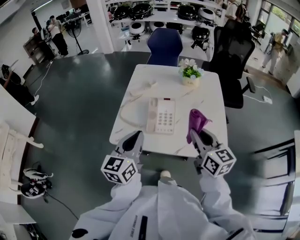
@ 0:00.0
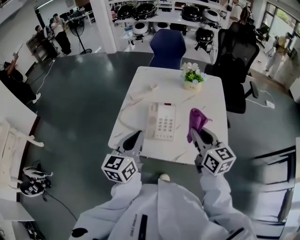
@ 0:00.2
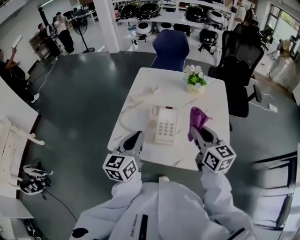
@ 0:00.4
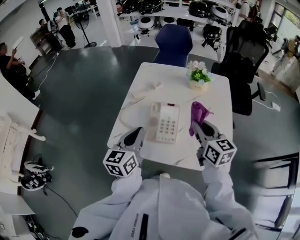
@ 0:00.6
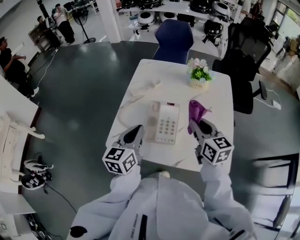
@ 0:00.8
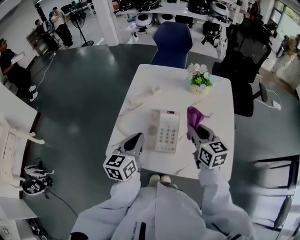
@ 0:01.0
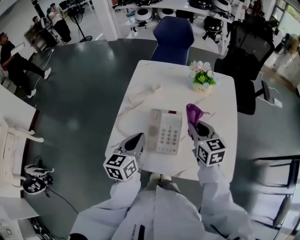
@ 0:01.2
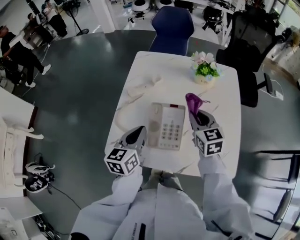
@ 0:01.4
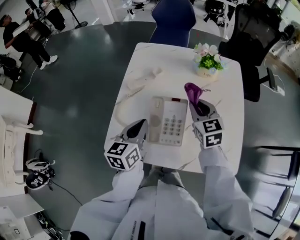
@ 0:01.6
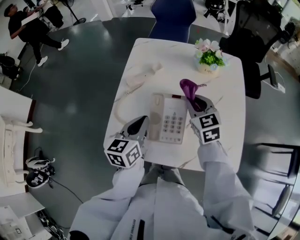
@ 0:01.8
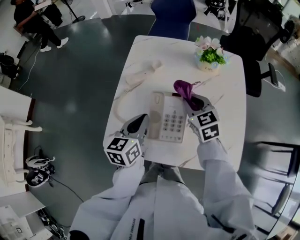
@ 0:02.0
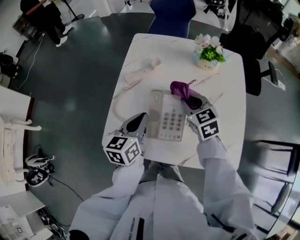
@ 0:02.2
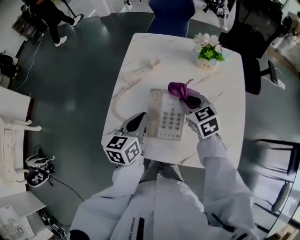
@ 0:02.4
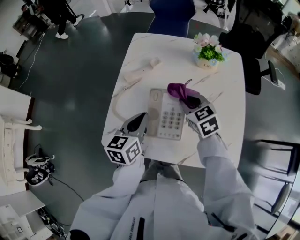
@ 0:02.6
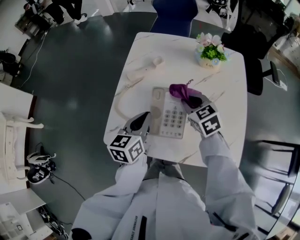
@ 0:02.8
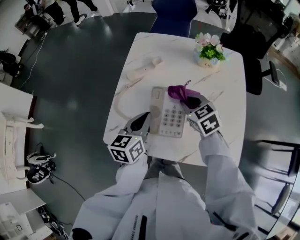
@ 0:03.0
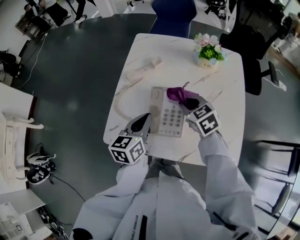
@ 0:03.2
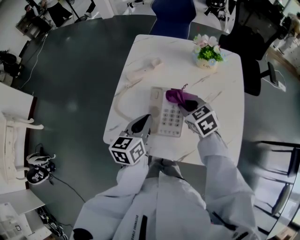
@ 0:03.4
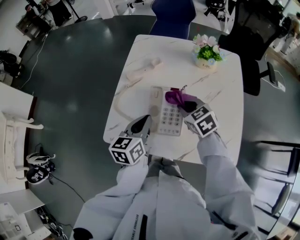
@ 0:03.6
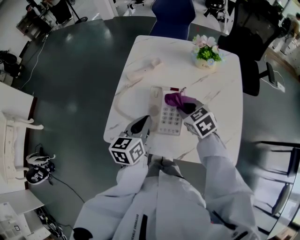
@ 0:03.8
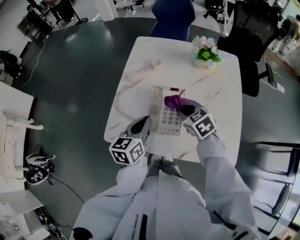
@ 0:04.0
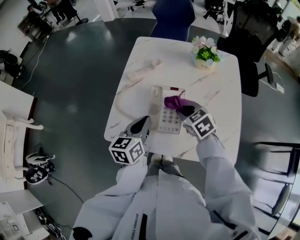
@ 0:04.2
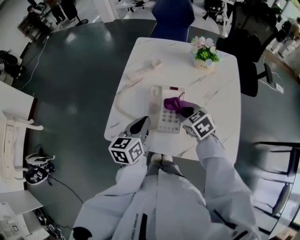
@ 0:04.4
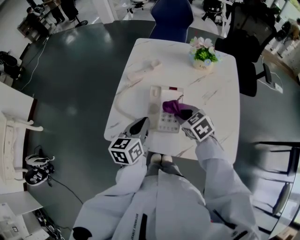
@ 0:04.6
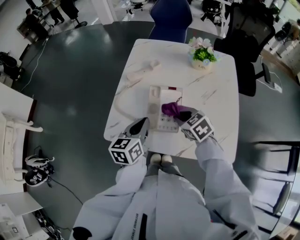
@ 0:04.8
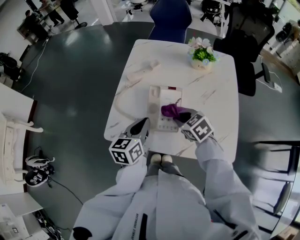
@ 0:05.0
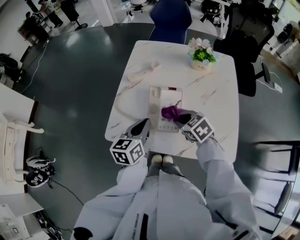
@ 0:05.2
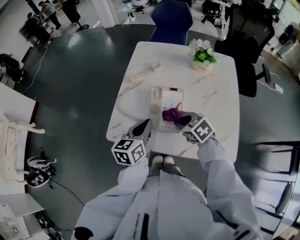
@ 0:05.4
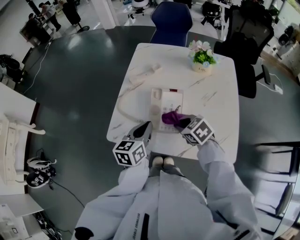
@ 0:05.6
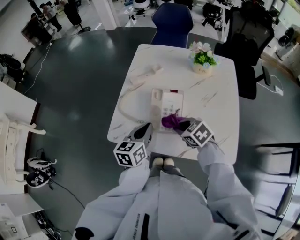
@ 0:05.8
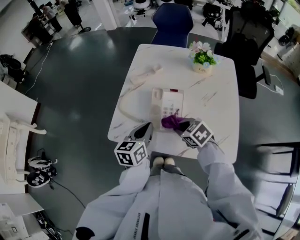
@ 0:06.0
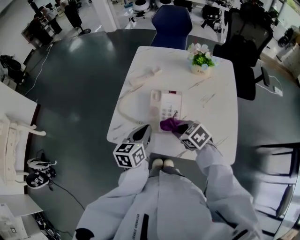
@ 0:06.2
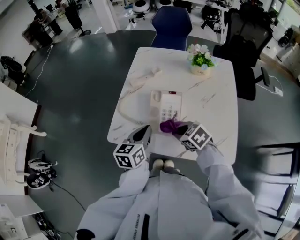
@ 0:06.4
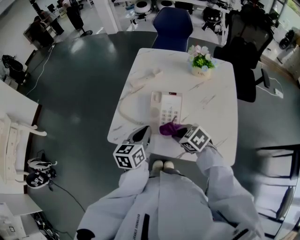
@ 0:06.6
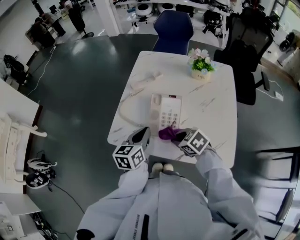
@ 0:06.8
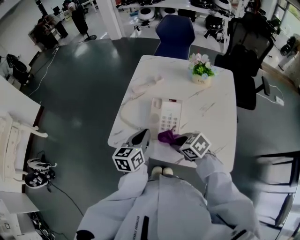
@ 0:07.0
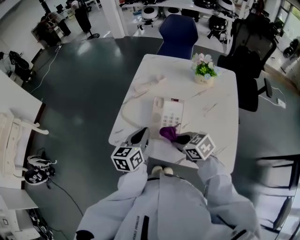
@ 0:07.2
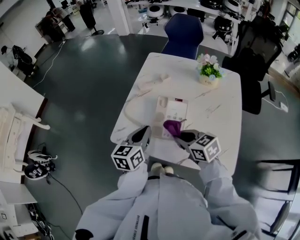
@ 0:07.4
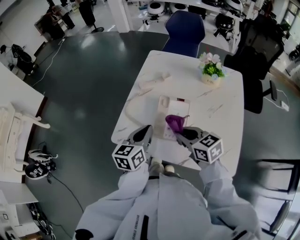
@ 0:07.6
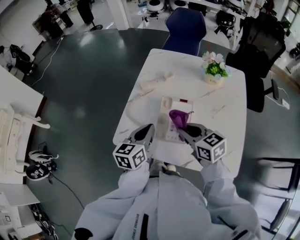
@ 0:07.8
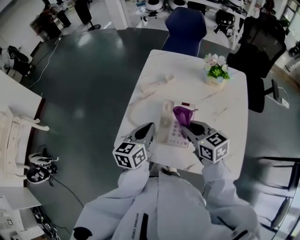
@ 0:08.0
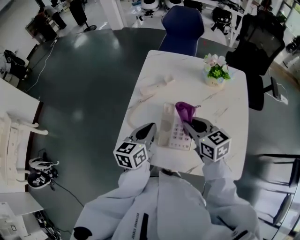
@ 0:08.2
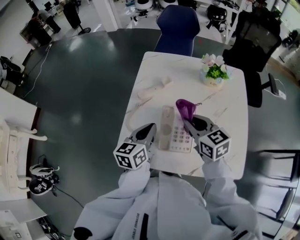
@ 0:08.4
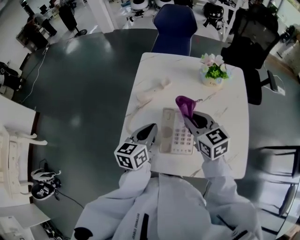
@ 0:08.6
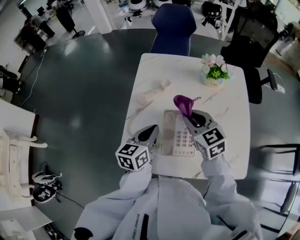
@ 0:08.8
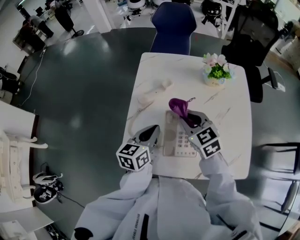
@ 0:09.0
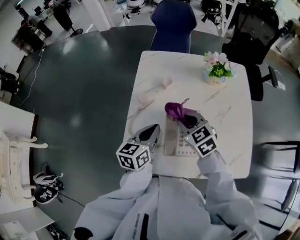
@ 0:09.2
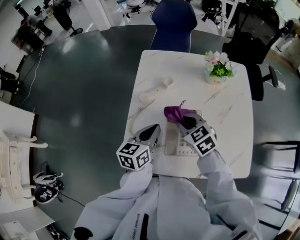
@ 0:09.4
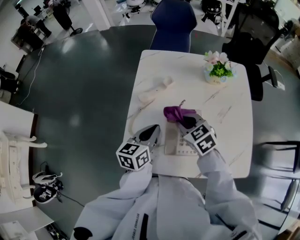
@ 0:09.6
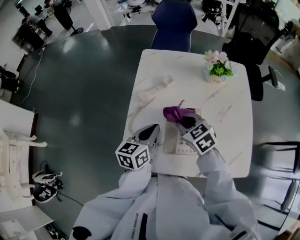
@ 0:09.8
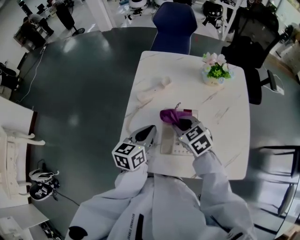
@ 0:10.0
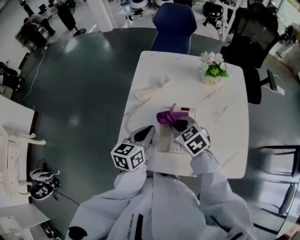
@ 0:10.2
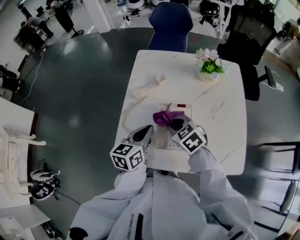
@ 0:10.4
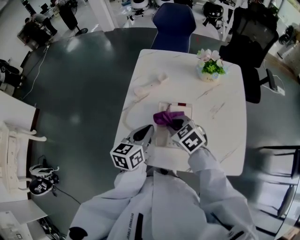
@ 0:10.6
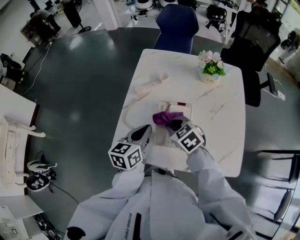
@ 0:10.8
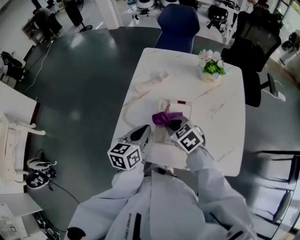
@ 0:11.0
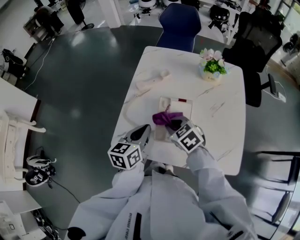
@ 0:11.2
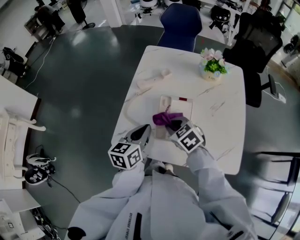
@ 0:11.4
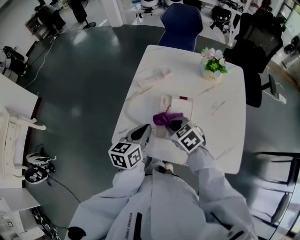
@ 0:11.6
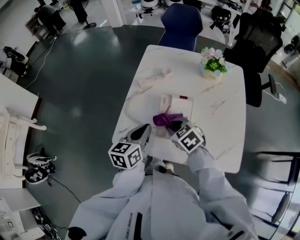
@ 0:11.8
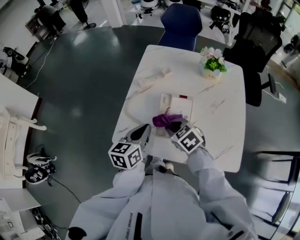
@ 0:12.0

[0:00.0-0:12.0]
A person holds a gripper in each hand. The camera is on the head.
0:00.0 to 0:01.6: The two grippers go about 25 cm forward and downward. The right gripper rotates approximately 30 degrees.
0:01.6 to 0:03.0: The right gripper changes place by approximately 5 cm, and swivels about 20 degrees.
0:03.0 to 0:04.4: The right gripper moves backward, some 5 cm.
0:04.4 to 0:06.0: The right gripper moves backward, approximately 5 cm.
0:06.0 to 0:07.6: The right gripper moves upward, approximately 5 cm, and swivels about 30 degrees.
0:07.6 to 0:09.0: Both grippers move forward, roughly 15 cm. The right gripper changes its angle by approximately 30 degrees.
0:09.0 to 0:10.4: The right gripper is displaced downward and backward by about 10 cm.
0:10.4 to 0:12.0: Both grippers travel together backward, roughly 5 cm.

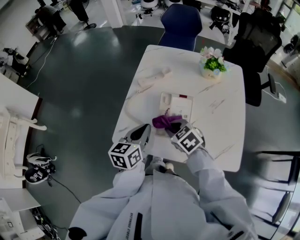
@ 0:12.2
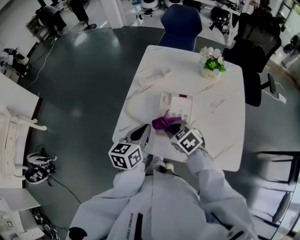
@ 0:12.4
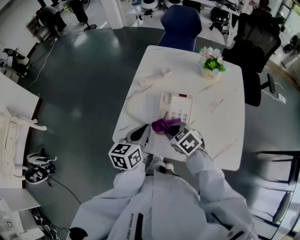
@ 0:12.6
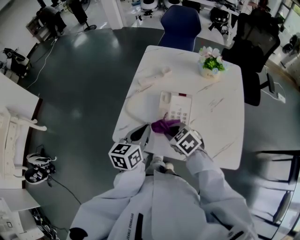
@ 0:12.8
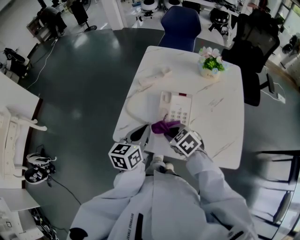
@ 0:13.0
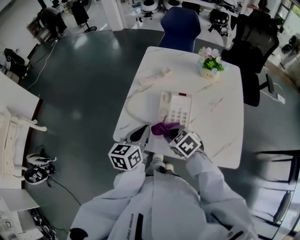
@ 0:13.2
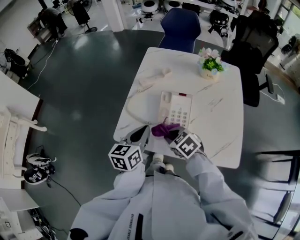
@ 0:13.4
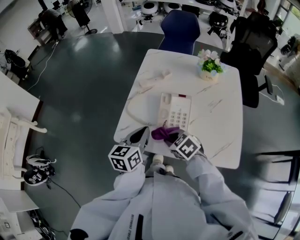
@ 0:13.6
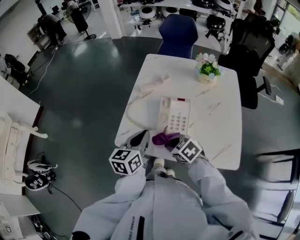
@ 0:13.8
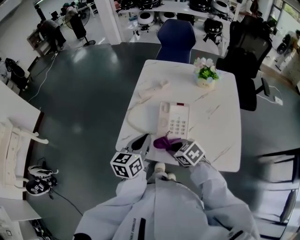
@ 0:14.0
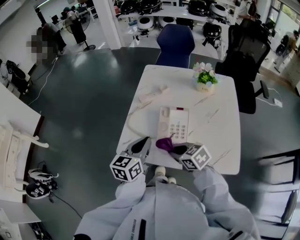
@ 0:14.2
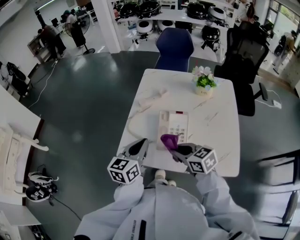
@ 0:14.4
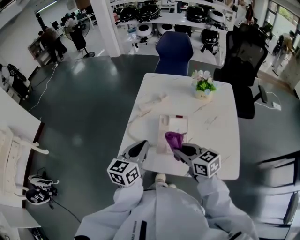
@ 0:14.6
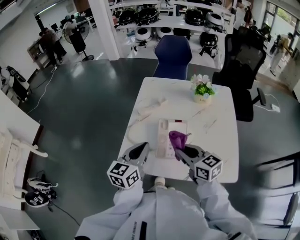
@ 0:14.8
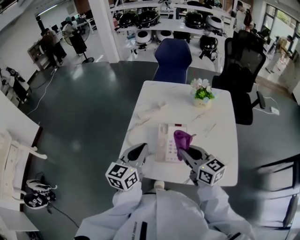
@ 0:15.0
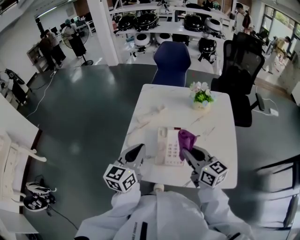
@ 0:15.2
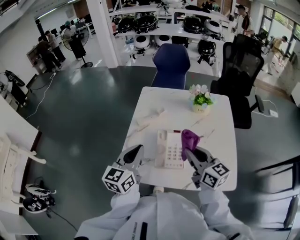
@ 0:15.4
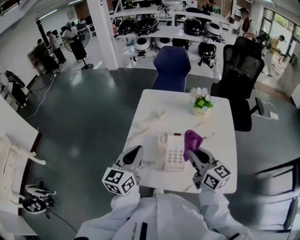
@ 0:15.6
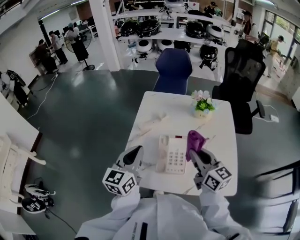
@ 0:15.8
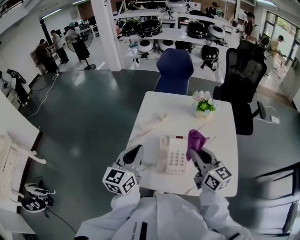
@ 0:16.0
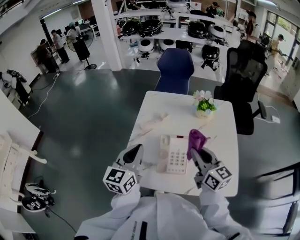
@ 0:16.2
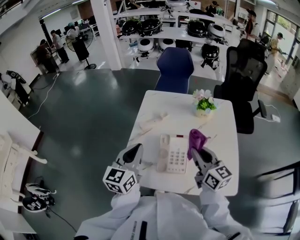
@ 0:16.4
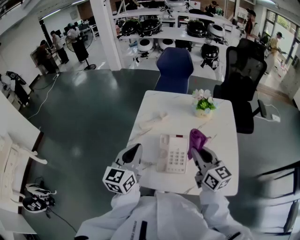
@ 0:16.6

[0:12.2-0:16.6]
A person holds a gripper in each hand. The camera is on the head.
0:12.2 to 0:13.6: The right gripper is displaced backward by roughly 5 cm.
0:13.6 to 0:15.2: The left gripper goes about 10 cm upward, while the right gripper goes about 20 cm upward and to the right, and tilts its fingers approximately 40 degrees upward.
0:15.2 to 0:16.6: The grippers move only a little.

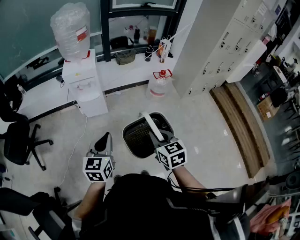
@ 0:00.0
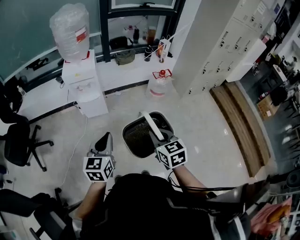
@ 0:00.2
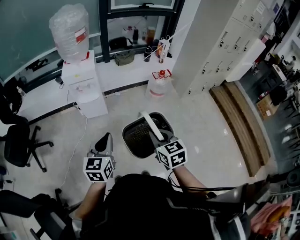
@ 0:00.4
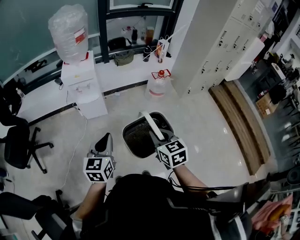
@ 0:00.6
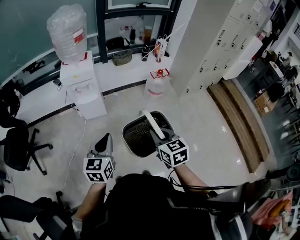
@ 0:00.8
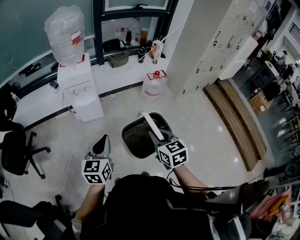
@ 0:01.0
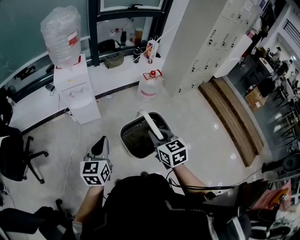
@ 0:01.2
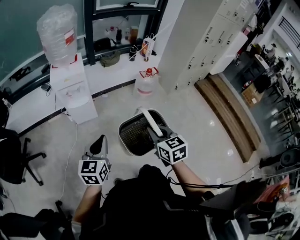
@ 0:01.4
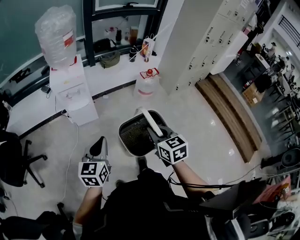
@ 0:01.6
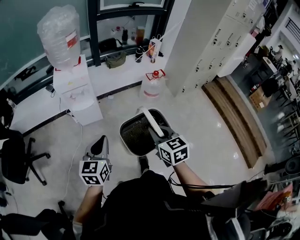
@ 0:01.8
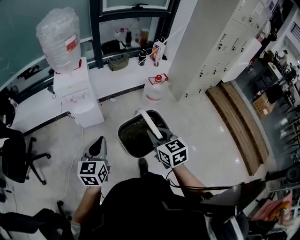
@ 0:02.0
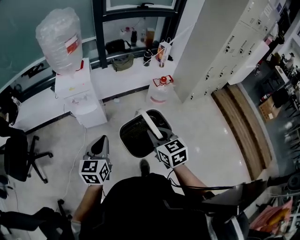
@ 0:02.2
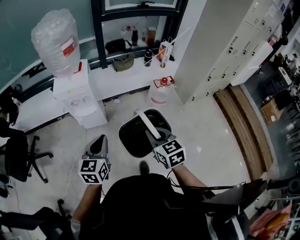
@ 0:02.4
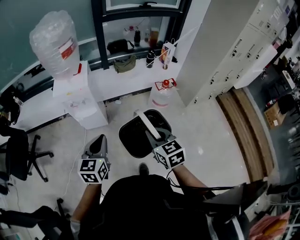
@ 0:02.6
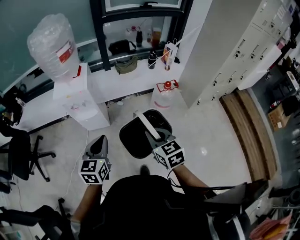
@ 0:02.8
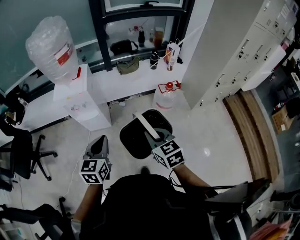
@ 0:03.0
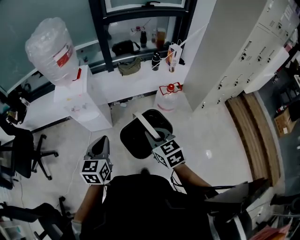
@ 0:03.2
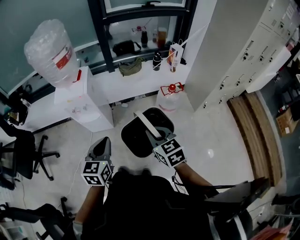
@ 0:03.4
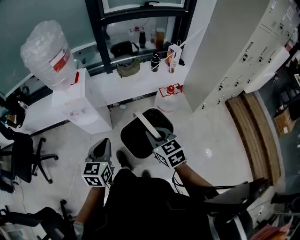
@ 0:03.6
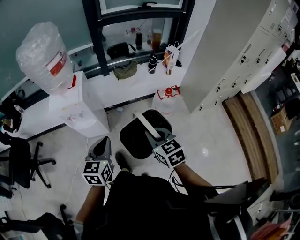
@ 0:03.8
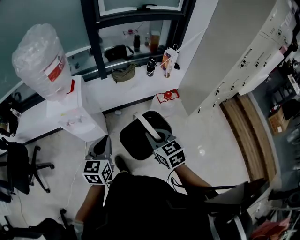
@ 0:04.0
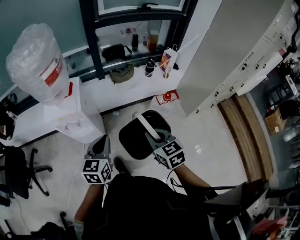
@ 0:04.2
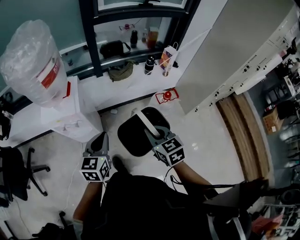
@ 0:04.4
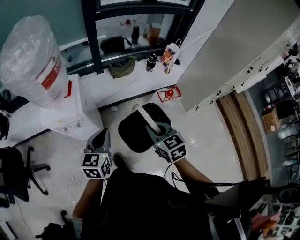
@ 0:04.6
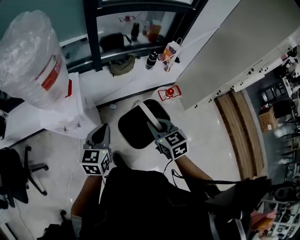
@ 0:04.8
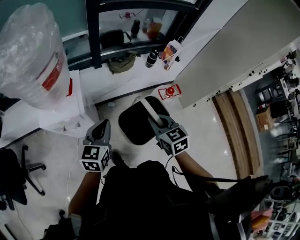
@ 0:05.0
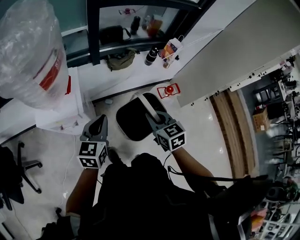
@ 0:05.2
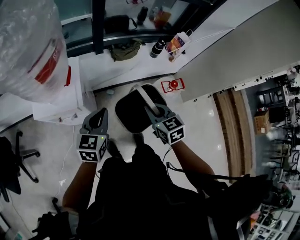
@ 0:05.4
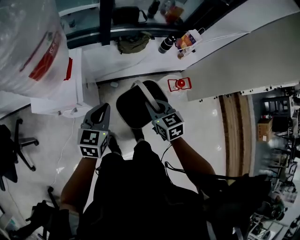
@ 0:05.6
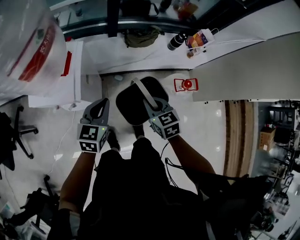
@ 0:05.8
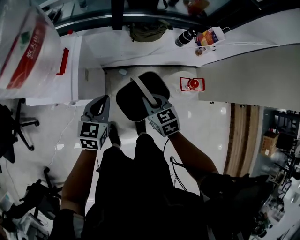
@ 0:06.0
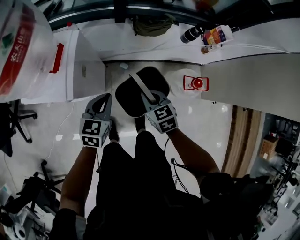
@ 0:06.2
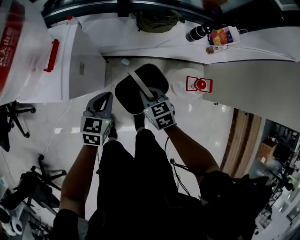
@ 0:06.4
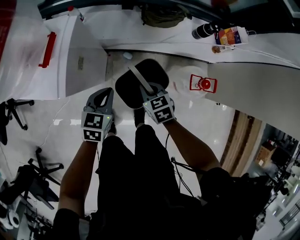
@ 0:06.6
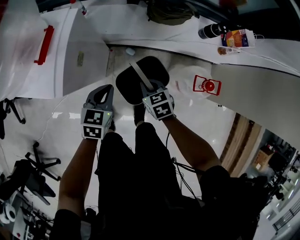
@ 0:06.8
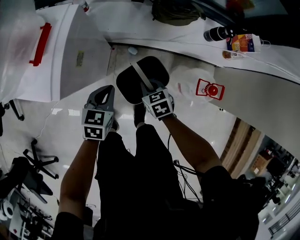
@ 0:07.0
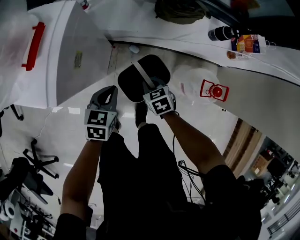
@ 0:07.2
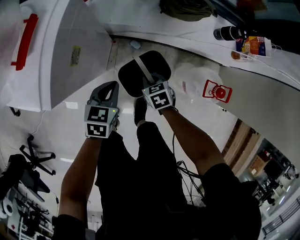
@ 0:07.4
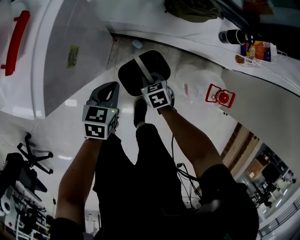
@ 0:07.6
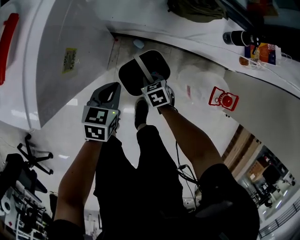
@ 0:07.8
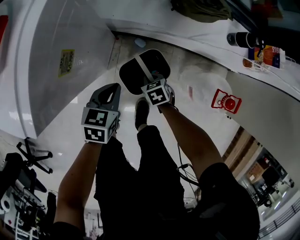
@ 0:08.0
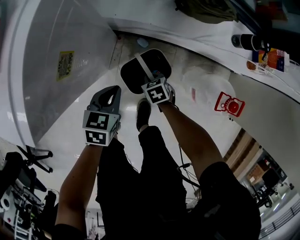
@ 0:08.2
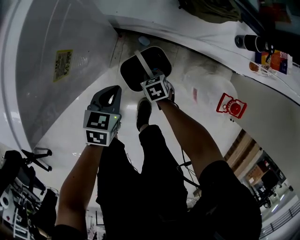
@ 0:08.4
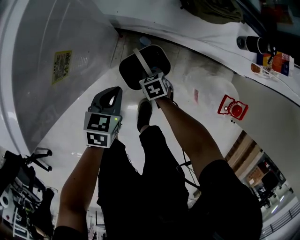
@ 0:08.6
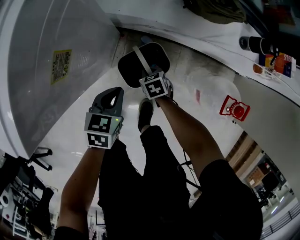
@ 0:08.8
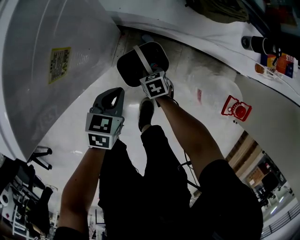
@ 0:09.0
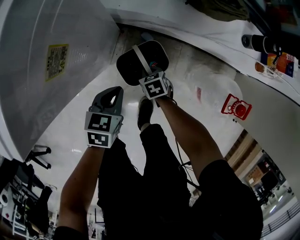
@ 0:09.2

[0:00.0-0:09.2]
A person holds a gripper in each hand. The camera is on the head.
0:00.0 to 0:01.6: The left gripper heads to the left, covering some 5 cm.
0:01.6 to 0:03.0: The grippers both shift forward and to the right by roughly 25 cm.
0:03.0 to 0:04.6: The grippers both shift forward by about 25 cm.
0:04.6 to 0:06.2: The grippers both shift downward and forward by roughly 30 cm.
0:06.2 to 0:07.6: Both grippers travel together downward, about 25 cm. The right gripper swivels roughly 20 degrees.
0:07.6 to 0:09.2: The two grippers go some 10 cm downward.
